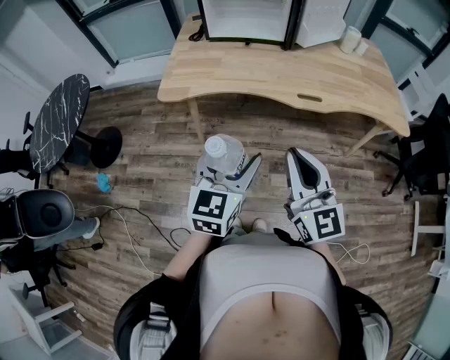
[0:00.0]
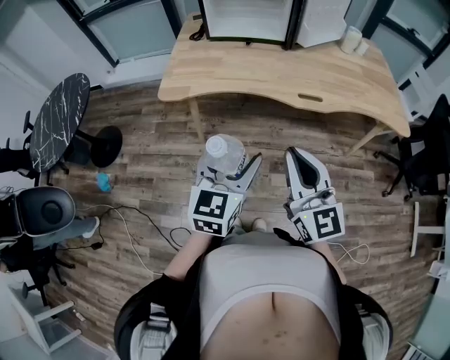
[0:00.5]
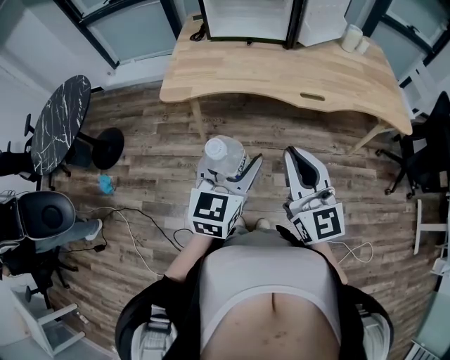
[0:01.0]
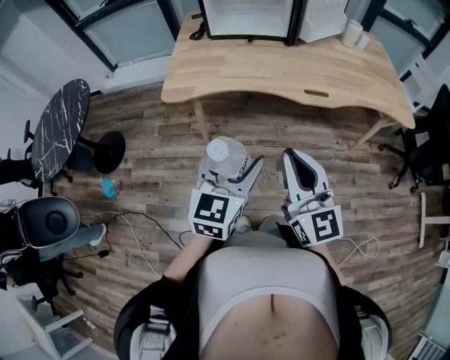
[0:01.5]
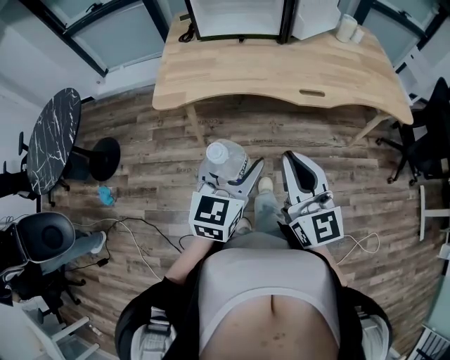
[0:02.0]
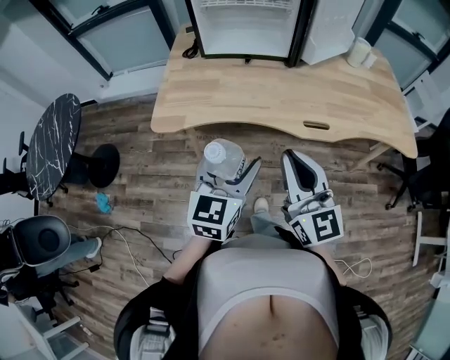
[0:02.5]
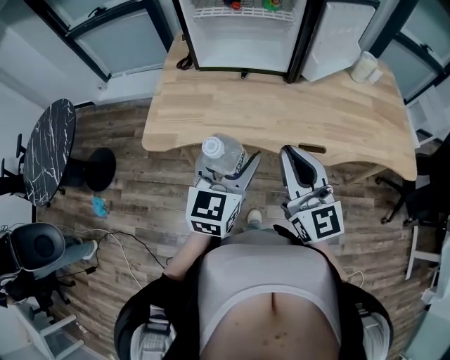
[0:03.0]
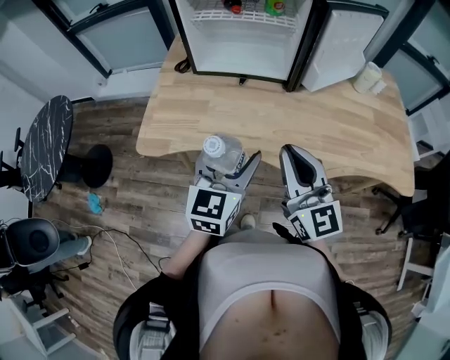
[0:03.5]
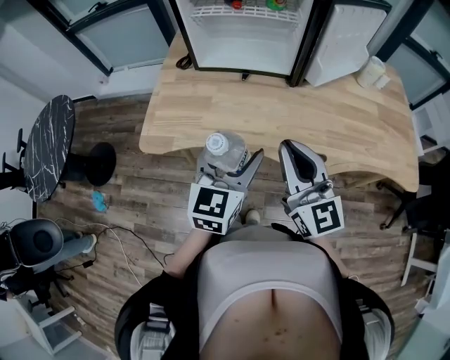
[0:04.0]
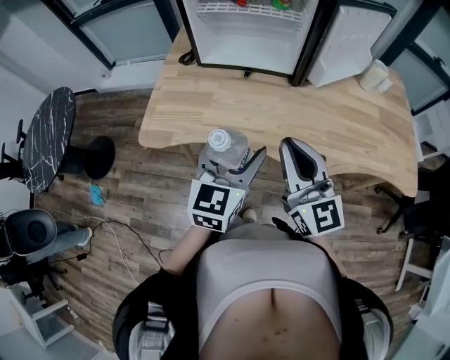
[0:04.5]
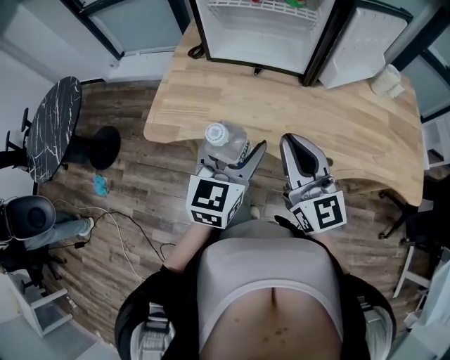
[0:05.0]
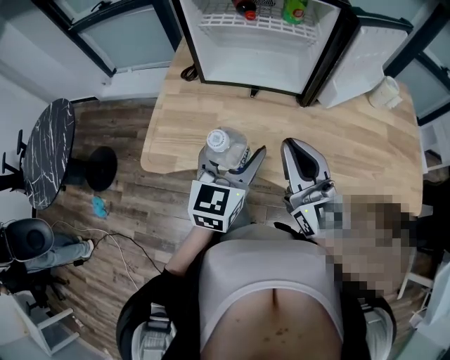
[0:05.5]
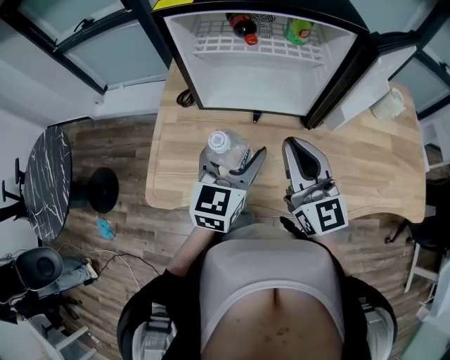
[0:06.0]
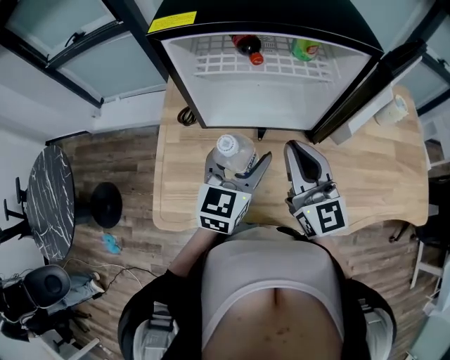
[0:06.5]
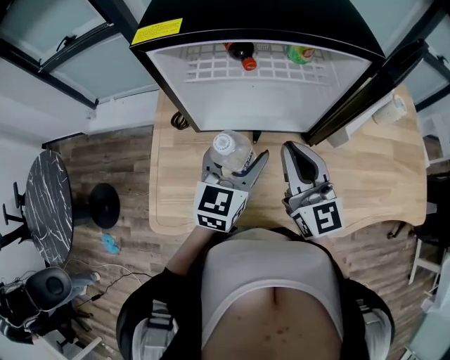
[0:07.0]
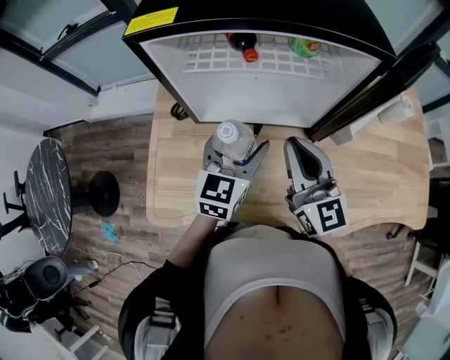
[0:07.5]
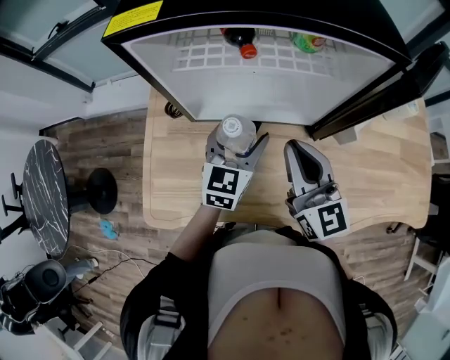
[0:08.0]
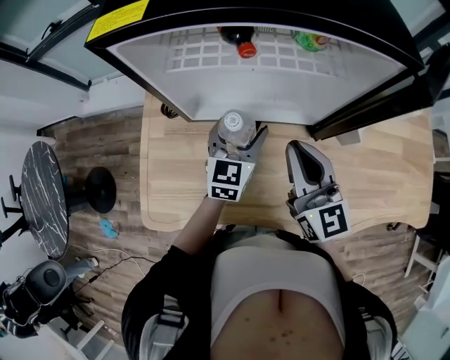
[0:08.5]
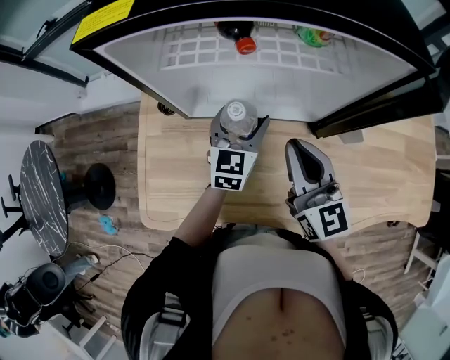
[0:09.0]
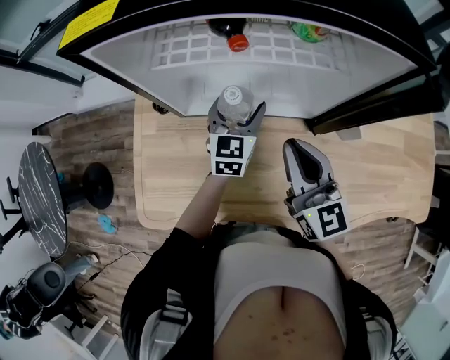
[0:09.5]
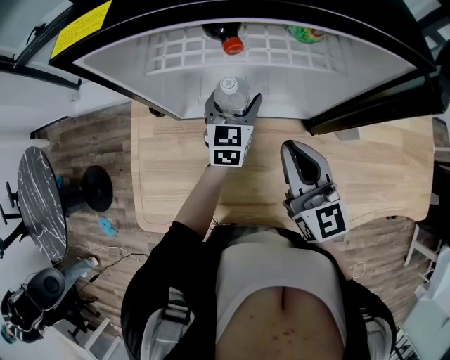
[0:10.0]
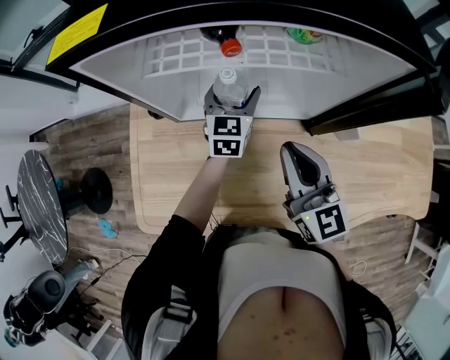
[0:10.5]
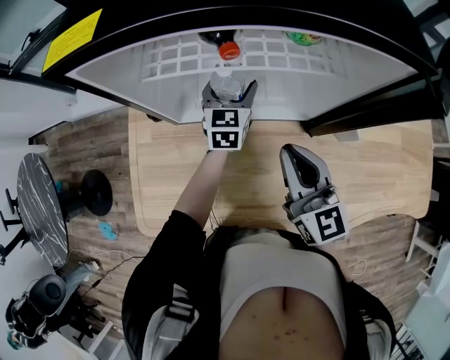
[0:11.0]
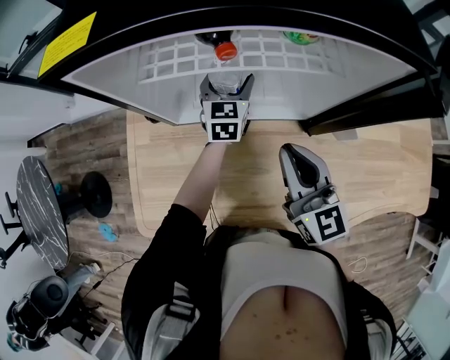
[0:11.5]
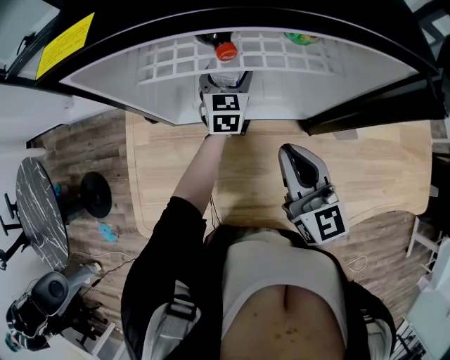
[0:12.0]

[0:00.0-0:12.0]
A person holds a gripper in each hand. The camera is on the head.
0:00.0 to 0:02.0: The grippers make only small movements.
0:02.0 to 0:04.0: The two grippers go approximately 25 cm forward.
0:04.0 to 0:06.0: The two grippers go about 20 cm forward.
0:06.0 to 0:08.0: The right gripper travels forward by about 10 cm. Meanwhile the left gripper is displaced forward and downward by roughly 15 cm.
0:08.0 to 0:10.0: The left gripper is displaced forward and downward by approximately 15 cm.
0:10.0 to 0:12.0: The left gripper moves forward, some 10 cm.

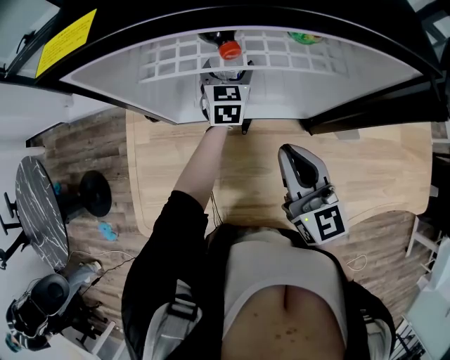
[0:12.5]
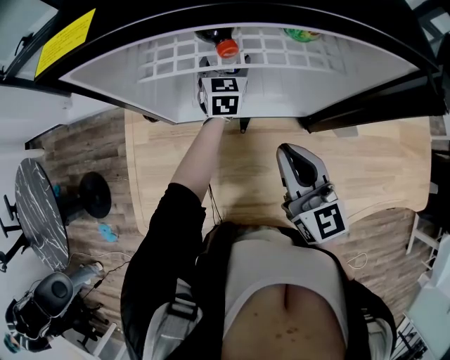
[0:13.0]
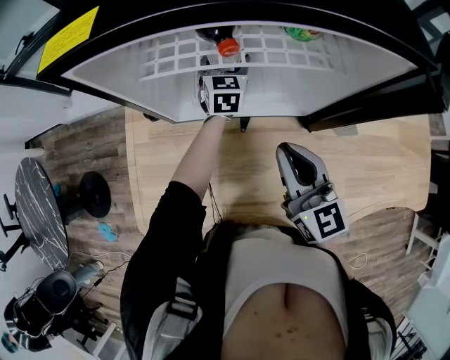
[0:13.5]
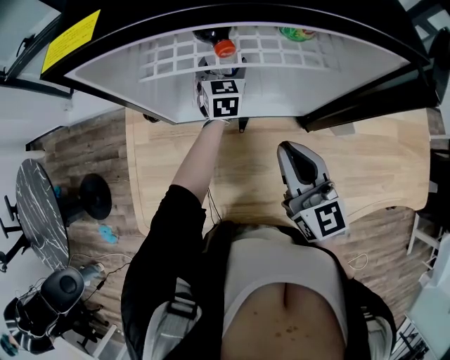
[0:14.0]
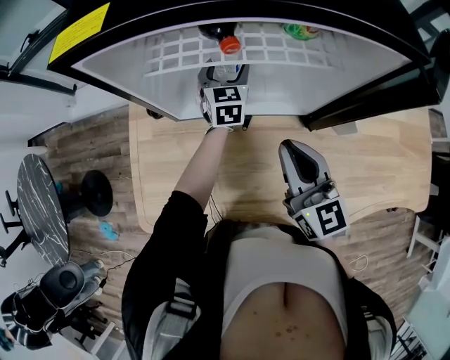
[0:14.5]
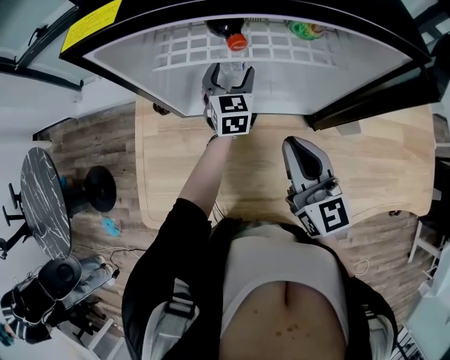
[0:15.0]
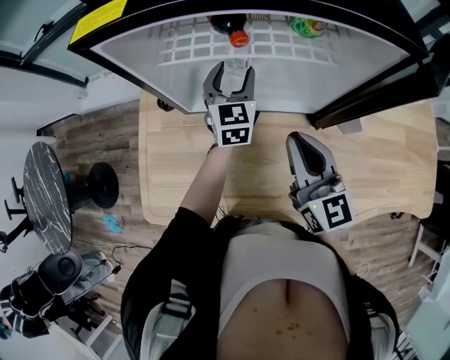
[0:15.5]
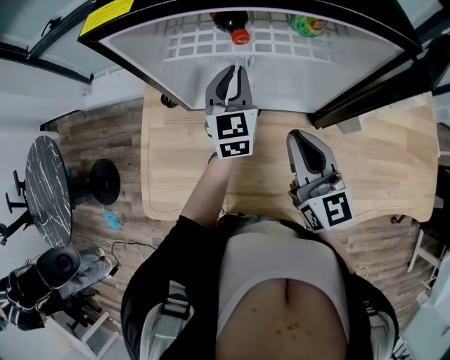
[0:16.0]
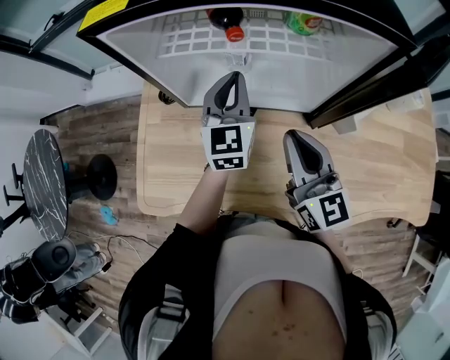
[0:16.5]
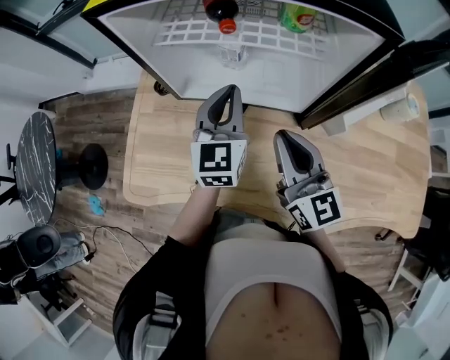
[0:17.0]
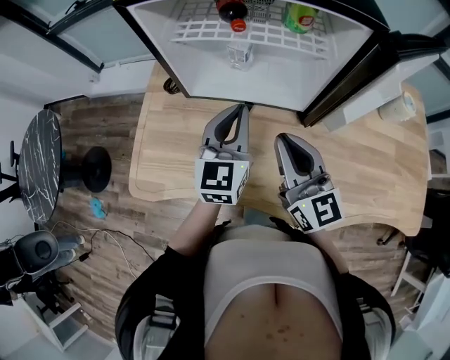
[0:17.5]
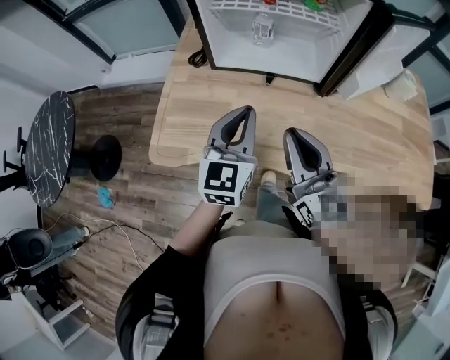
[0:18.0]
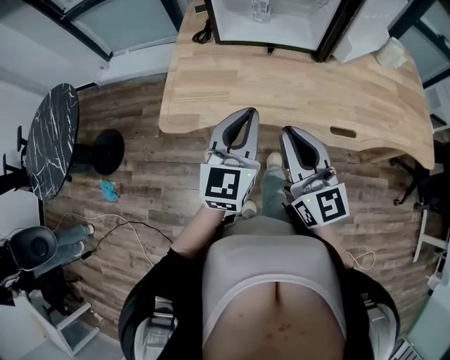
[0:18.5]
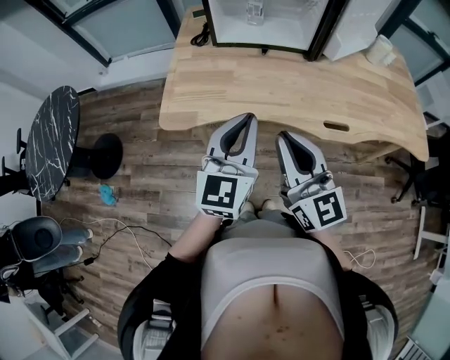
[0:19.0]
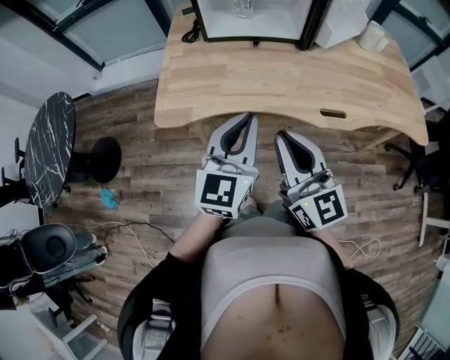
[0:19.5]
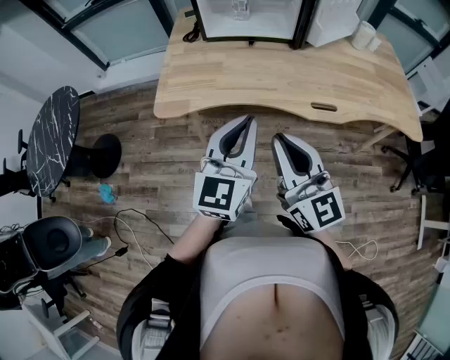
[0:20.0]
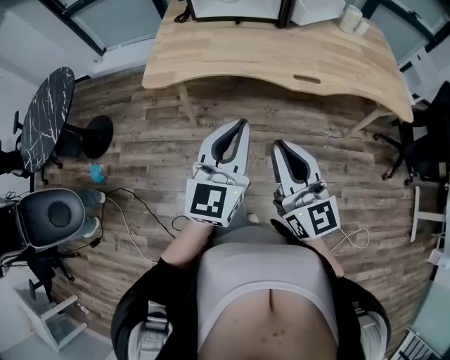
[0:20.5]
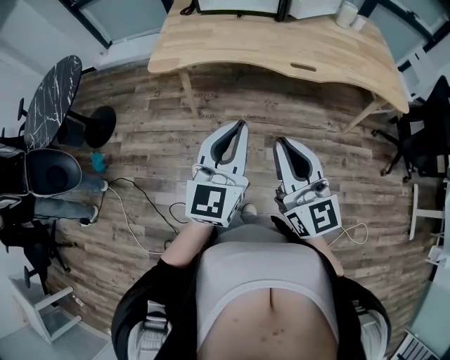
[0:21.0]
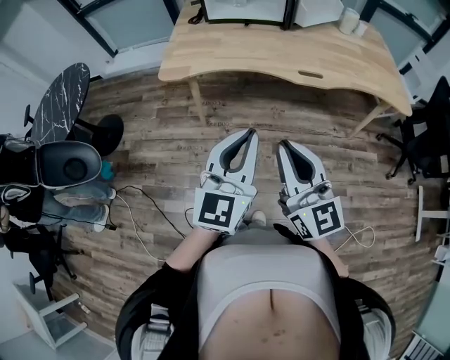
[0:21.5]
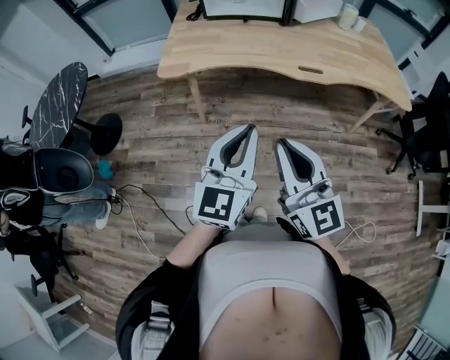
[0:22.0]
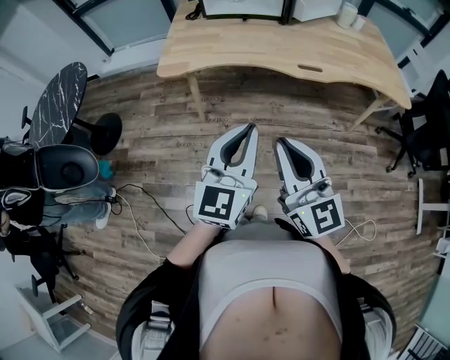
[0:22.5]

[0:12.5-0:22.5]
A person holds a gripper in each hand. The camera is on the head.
0:12.5 to 0:14.5: There are only small adjustments of the grippers.
0:14.5 to 0:16.5: The left gripper moves backward and upward, about 15 cm, and closes.
0:16.5 to 0:18.5: The right gripper heads backward and to the left, covering about 35 cm. The left gripper goes approximately 40 cm backward.
0:18.5 to 0:20.5: Both grippers travel together backward, approximately 25 cm.
0:20.5 to 0:22.5: Both grippers move backward, roughly 10 cm.

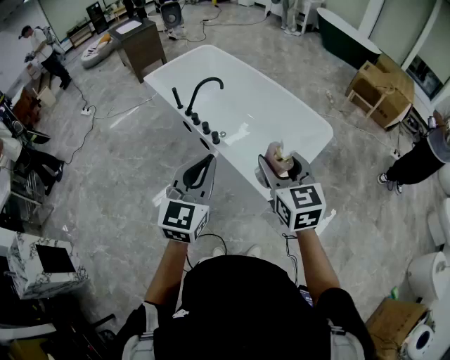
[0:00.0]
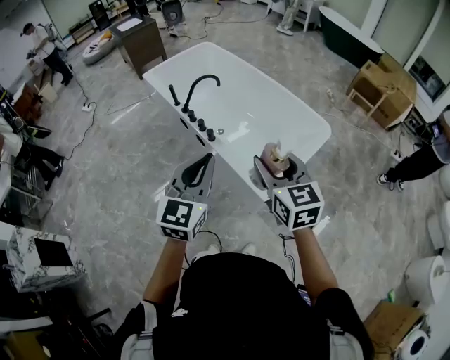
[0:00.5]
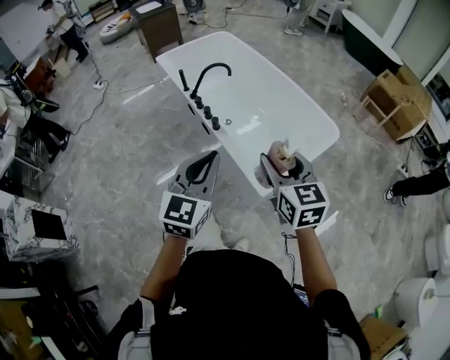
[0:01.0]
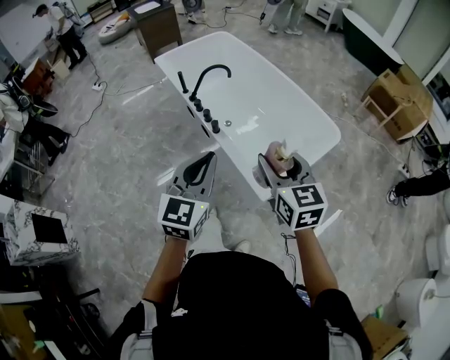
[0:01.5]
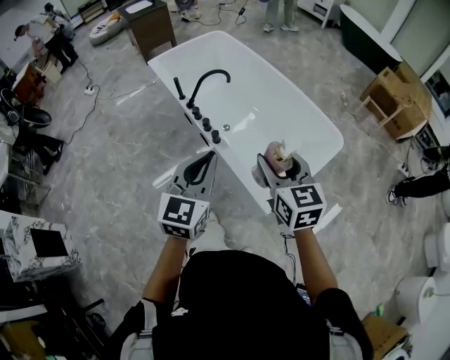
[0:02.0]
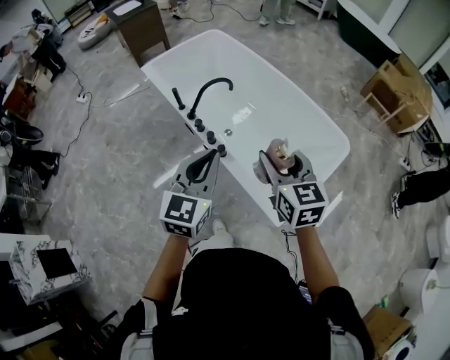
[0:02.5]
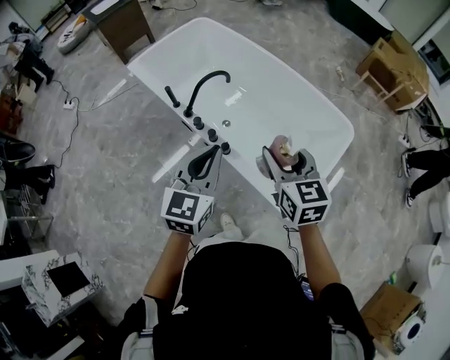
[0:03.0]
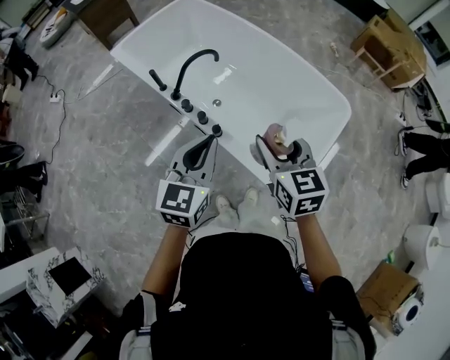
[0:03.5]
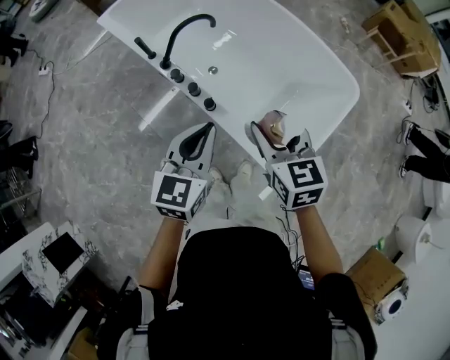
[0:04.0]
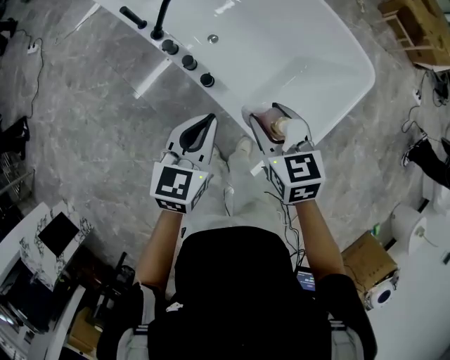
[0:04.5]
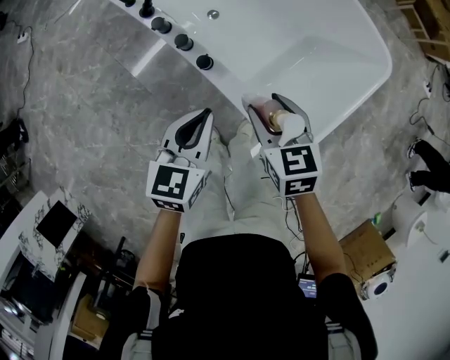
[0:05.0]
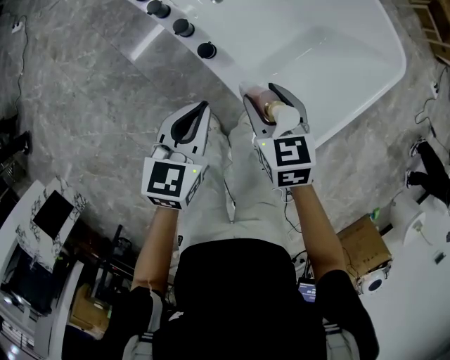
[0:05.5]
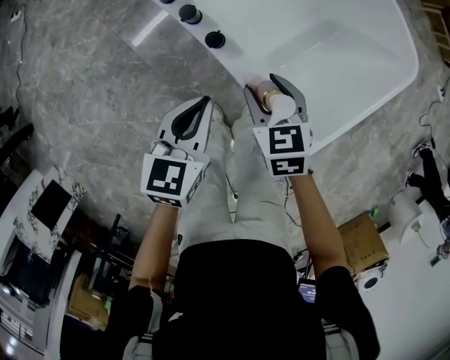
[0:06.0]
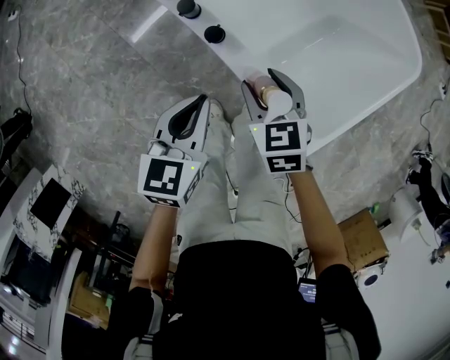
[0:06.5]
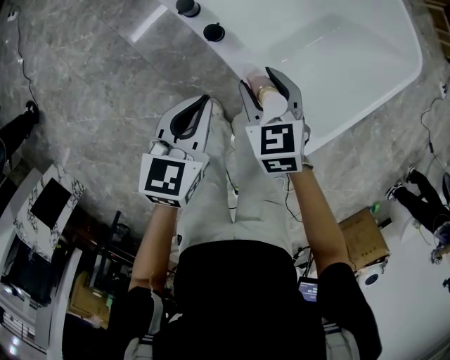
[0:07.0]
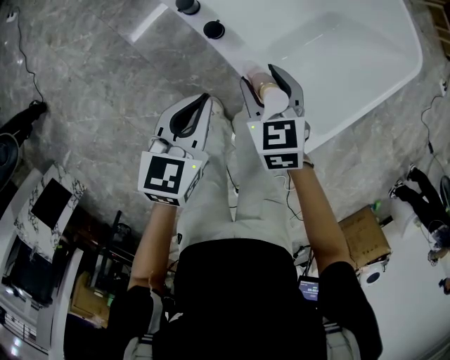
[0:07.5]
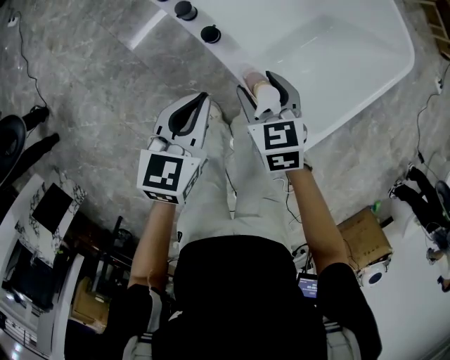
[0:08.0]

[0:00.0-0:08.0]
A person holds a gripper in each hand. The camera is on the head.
0:00.0 to 0:02.0: Both grippers travel together forward and downward, about 10 cm.
0:02.0 to 0:04.0: The left gripper goes some 25 cm forward and downward; the right gripper goes approximately 25 cm forward, downward and to the left.
0:04.0 to 0:06.0: Both grippers move downward, roughly 30 cm. The right gripper swivels roughly 20 degrees.
0:06.0 to 0:08.0: The grippers stay close to where they were, moving slightly.
